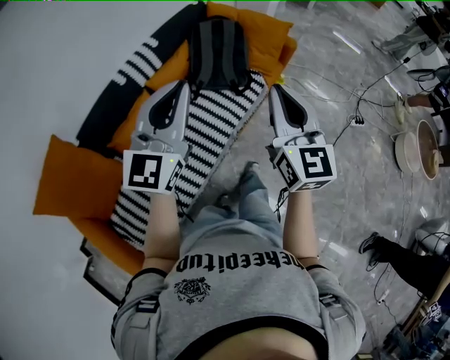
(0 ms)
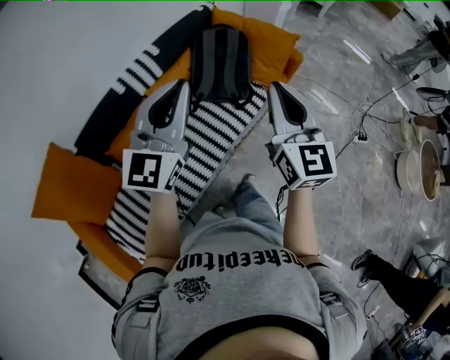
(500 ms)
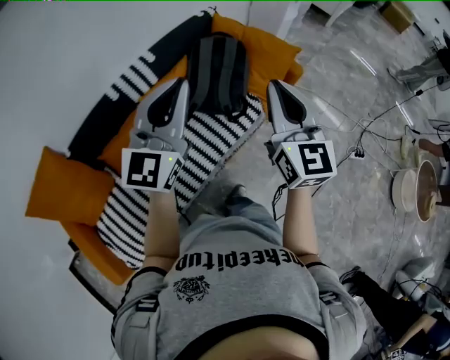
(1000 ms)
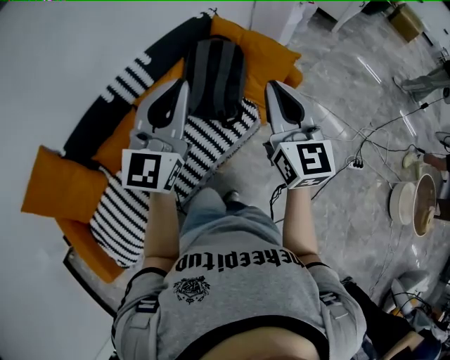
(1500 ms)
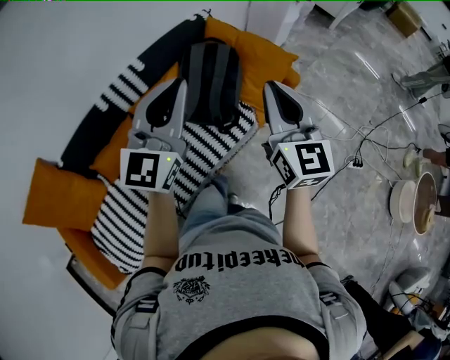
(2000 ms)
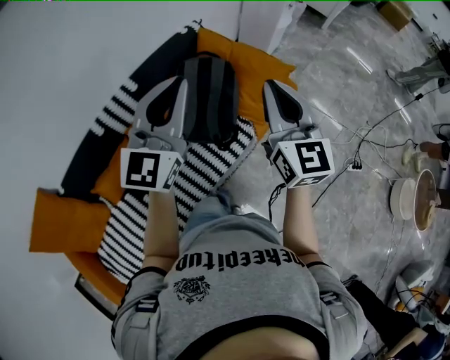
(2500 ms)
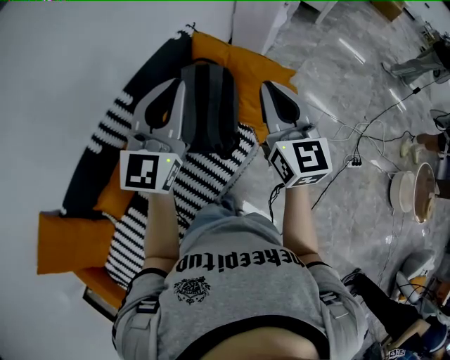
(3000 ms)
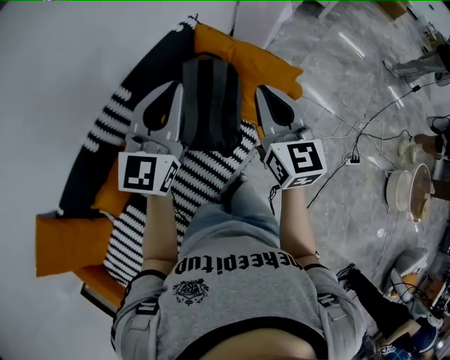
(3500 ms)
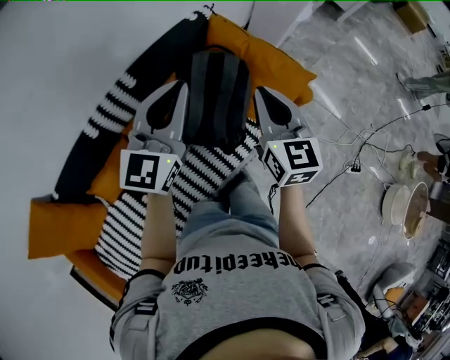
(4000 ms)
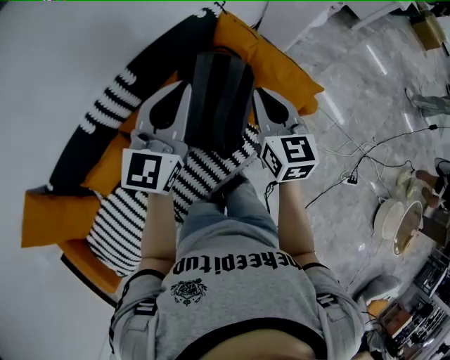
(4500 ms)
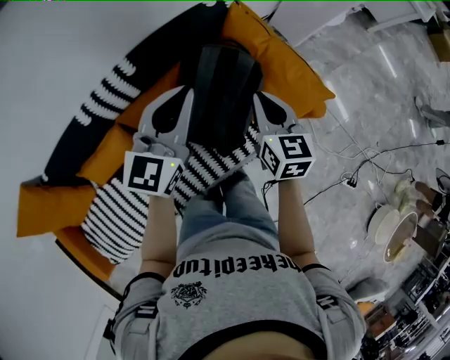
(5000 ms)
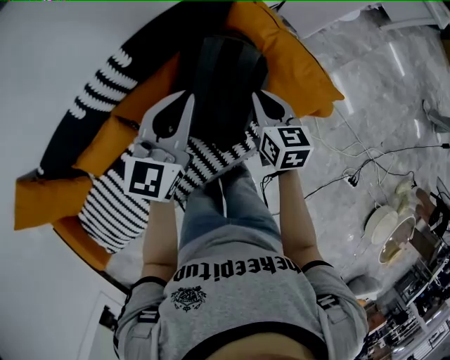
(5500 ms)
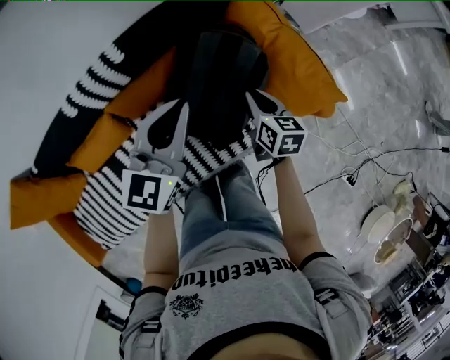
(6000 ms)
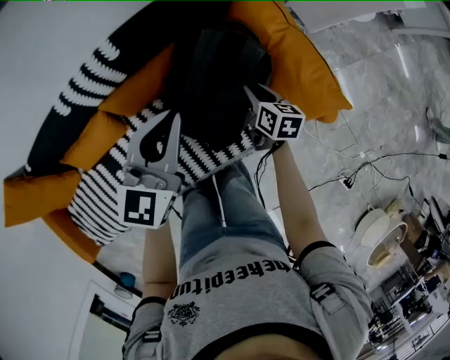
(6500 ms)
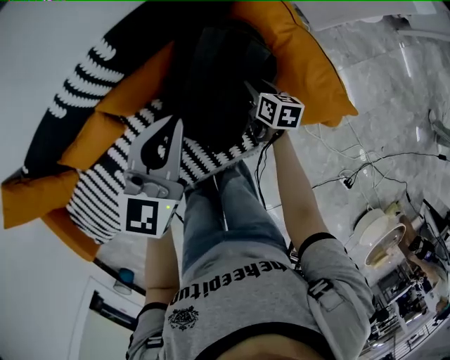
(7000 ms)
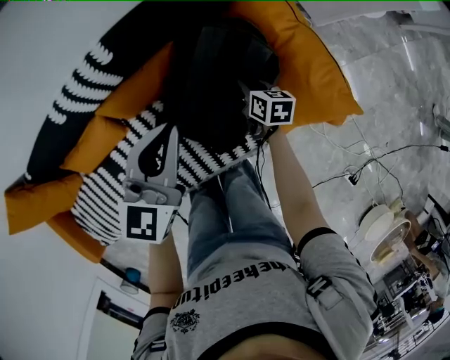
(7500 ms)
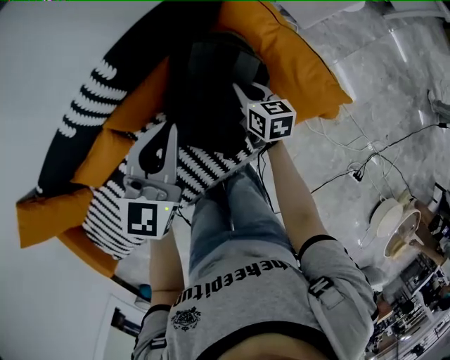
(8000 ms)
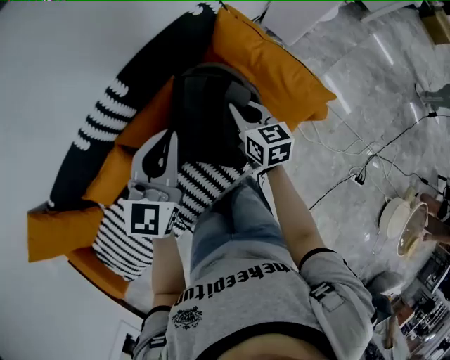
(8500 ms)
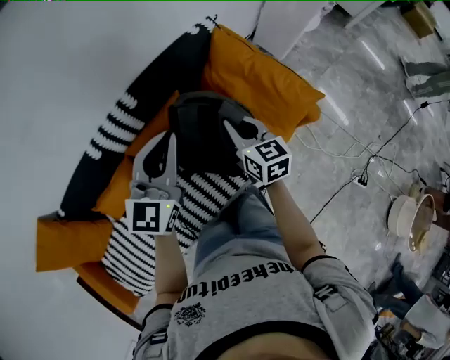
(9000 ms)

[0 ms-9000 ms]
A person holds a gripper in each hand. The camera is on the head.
0 ms to 2000 ms: Both grippers travel together forward and to the right, about 25 cm.
2000 ms to 4500 ms: The right gripper shifts some 30 cm forward and downward, and changes its angle by approximately 20 degrees. Meanwhile the left gripper moves forward, approximately 25 cm.
4500 ms to 7000 ms: The right gripper goes approximately 35 cm downward, swivels some 40 degrees, and opens up. Meanwhile the left gripper is displaced downward by roughly 15 cm, and swivels roughly 20 degrees.
7000 ms to 9000 ms: The right gripper travels upward, backward and to the left by about 25 cm, rotates some 30 degrees, and closes. The left gripper heads upward, covering roughly 10 cm.

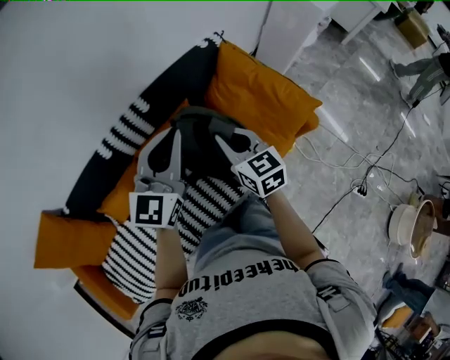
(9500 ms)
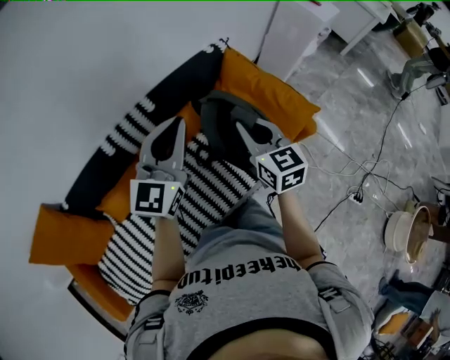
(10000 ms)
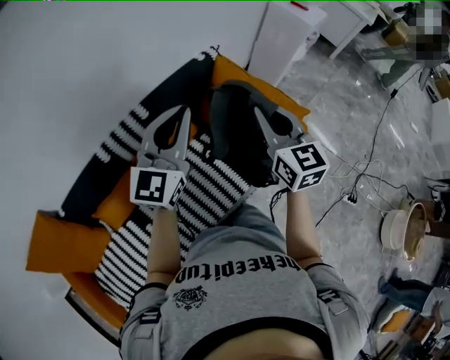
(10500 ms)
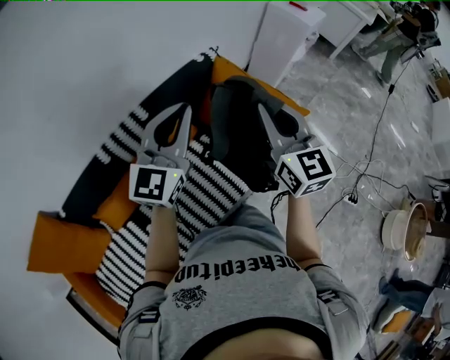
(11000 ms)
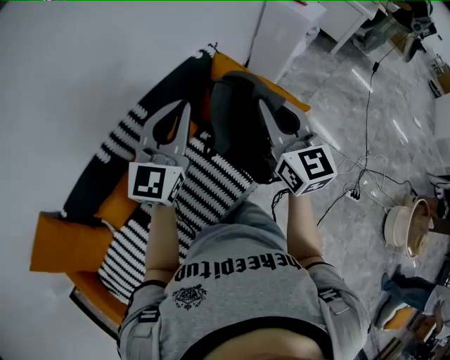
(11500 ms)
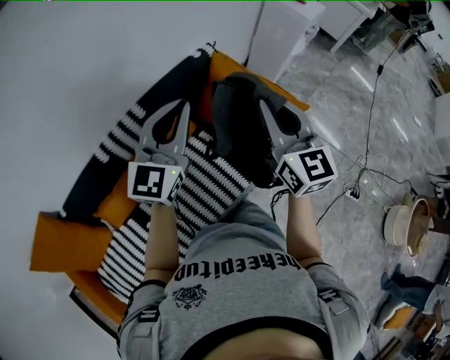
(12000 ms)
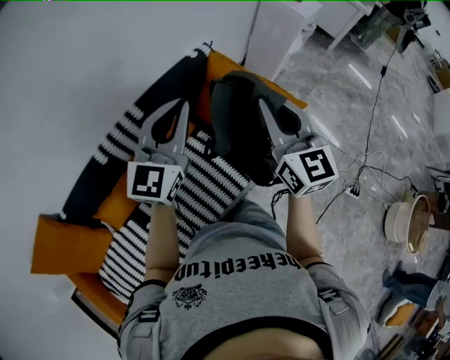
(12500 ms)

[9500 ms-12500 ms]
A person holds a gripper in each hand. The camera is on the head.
9500 ms to 11000 ms: The right gripper travels upward and to the right by about 20 cm, and changes its angle by some 30 degrees. The left gripper heads upward, covering some 5 cm.
11000 ms to 12500 ms: The grippers move only a little.

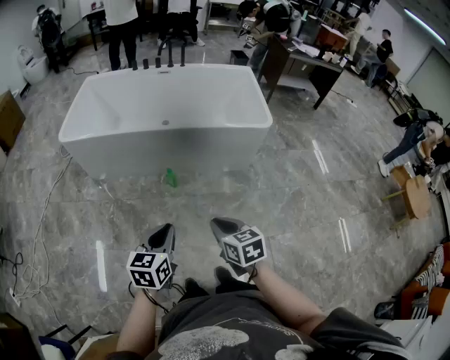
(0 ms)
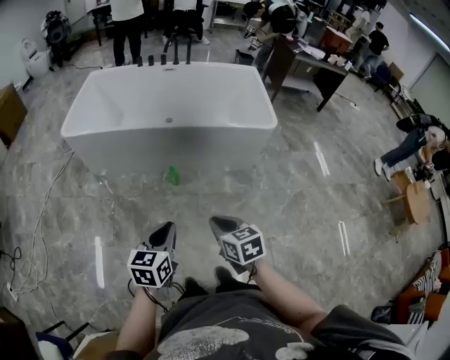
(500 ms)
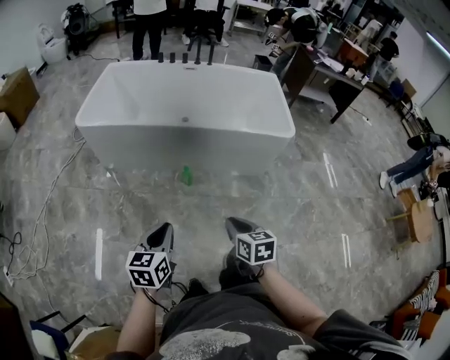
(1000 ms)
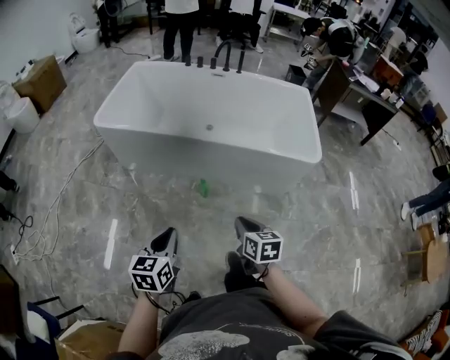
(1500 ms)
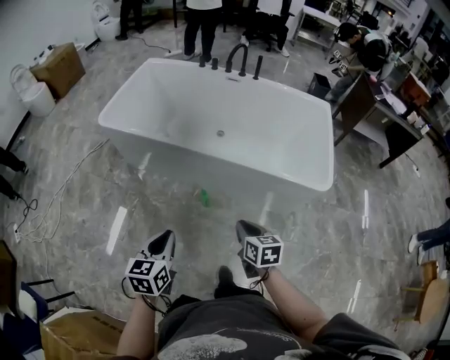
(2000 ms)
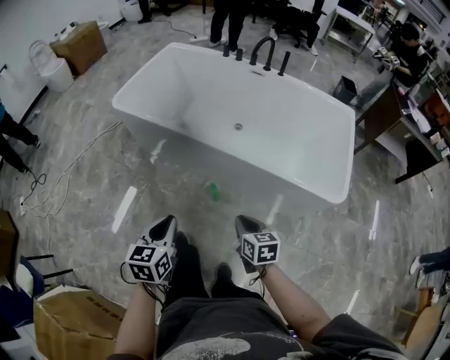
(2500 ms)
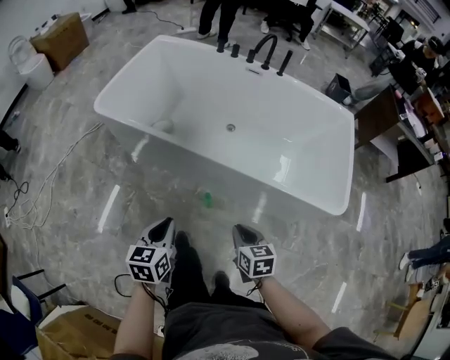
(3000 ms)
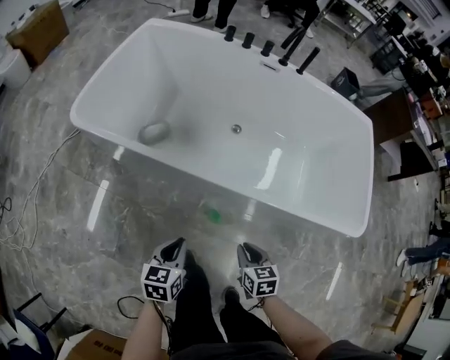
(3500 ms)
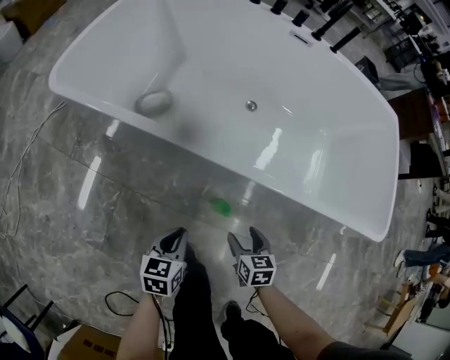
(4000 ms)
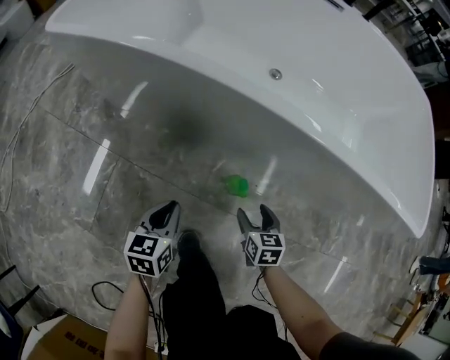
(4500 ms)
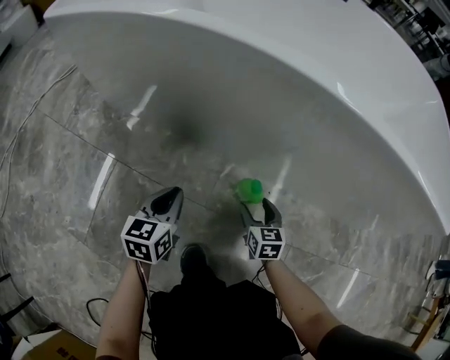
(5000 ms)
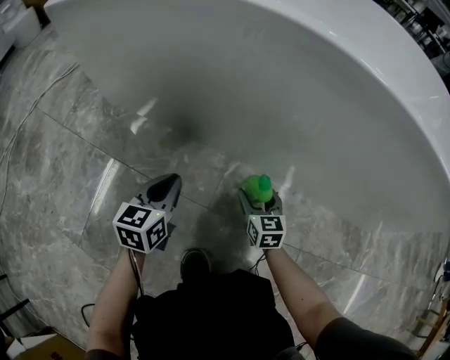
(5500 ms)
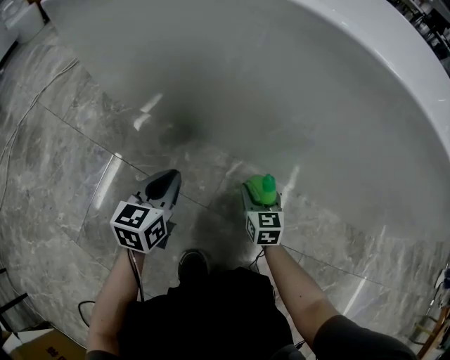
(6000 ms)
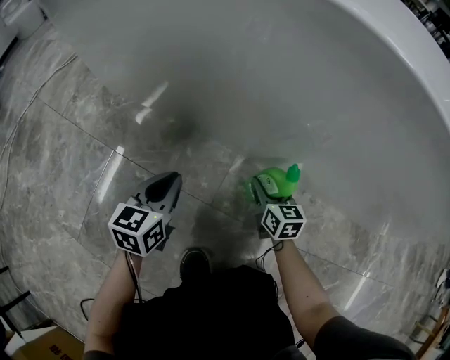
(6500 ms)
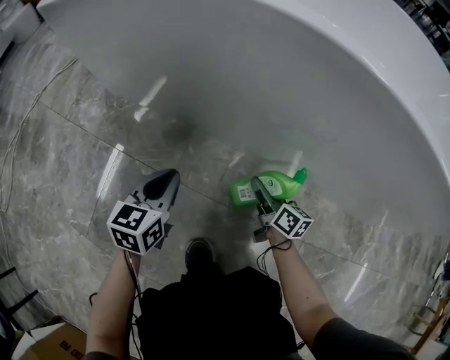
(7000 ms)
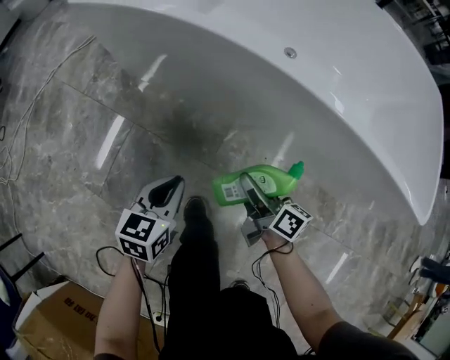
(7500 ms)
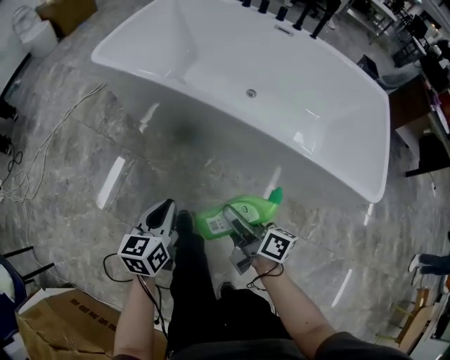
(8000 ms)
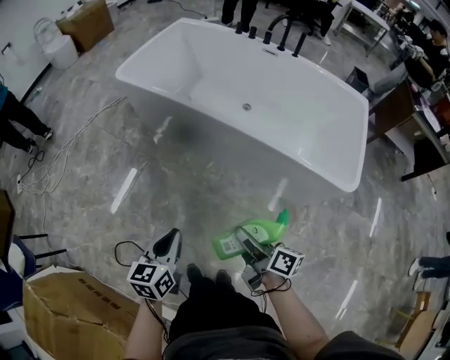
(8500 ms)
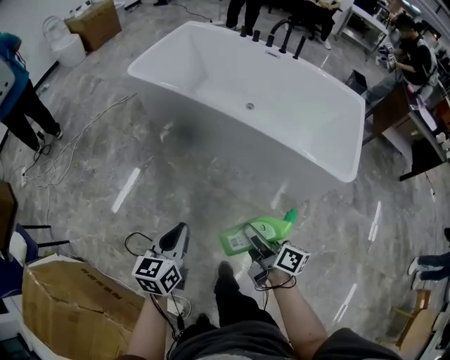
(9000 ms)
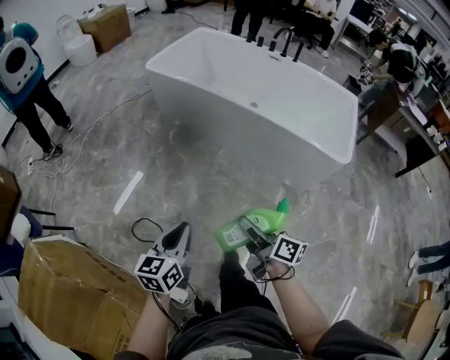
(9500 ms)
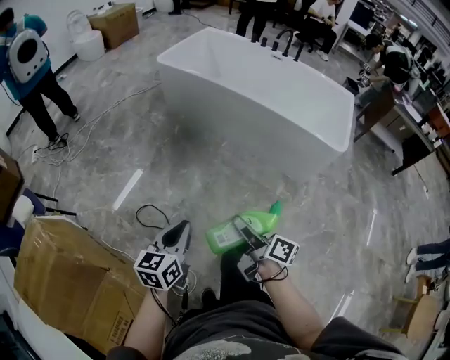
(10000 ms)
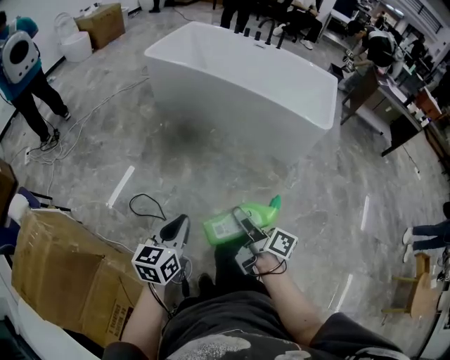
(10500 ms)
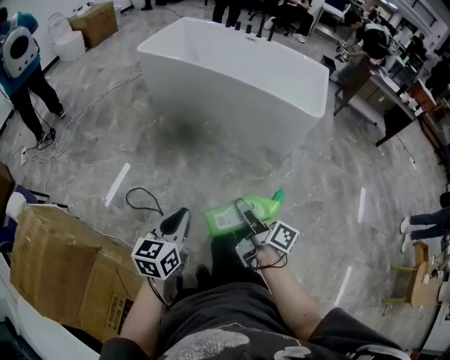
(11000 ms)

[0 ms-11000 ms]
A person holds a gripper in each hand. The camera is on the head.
0 ms to 2000 ms: The two grippers go approximately 25 cm forward. The left gripper changes its angle by roughly 20 degrees.
2000 ms to 3500 ms: The left gripper shifts roughly 35 cm forward and downward, while the right gripper moves forward, downward and to the left, about 30 cm.
3500 ms to 5500 ms: The grippers both shift downward by about 40 cm. The right gripper swivels roughly 20 degrees, and opens its fingers.
5500 ms to 7500 ms: The right gripper shifts some 25 cm upward, rotates around the line of its fingers by approximately 50 degrees, clockwise from behind, and closes; the left gripper moves upward and backward, about 20 cm.
7500 ms to 9000 ms: The grippers both shift upward and backward by some 50 cm.
9000 ms to 11000 ms: The two grippers go about 35 cm backward.

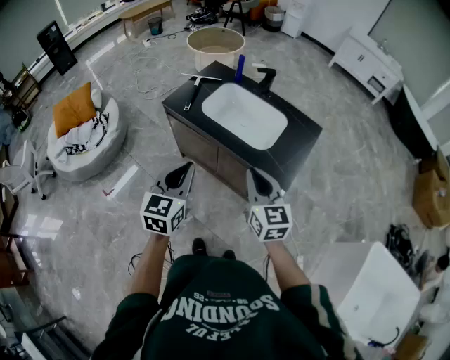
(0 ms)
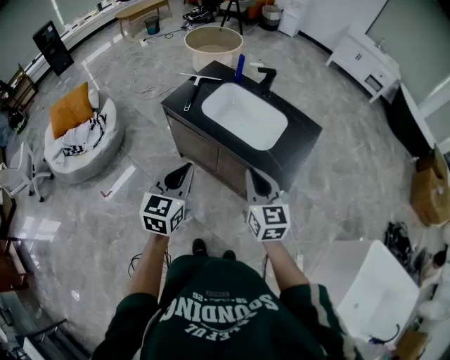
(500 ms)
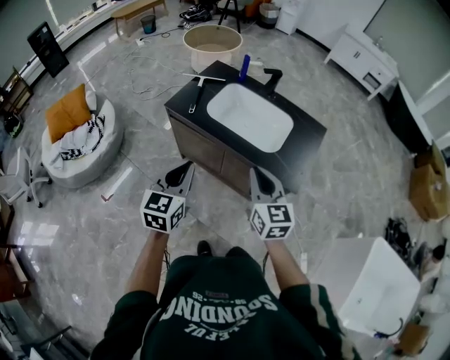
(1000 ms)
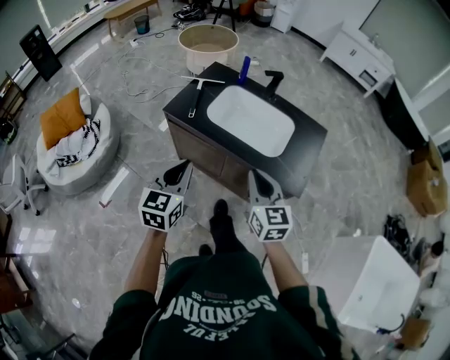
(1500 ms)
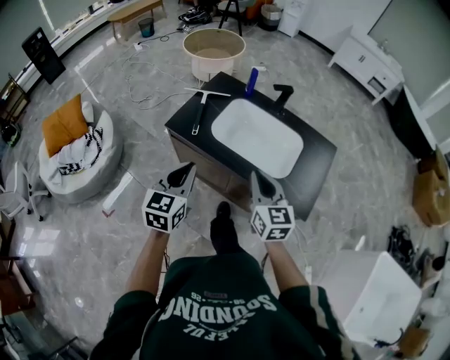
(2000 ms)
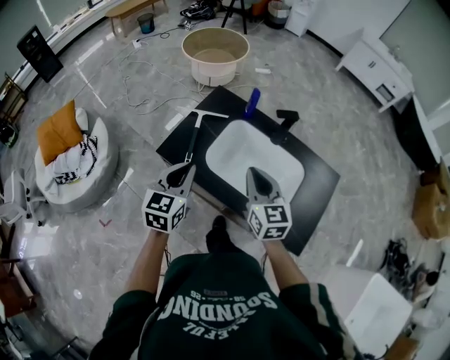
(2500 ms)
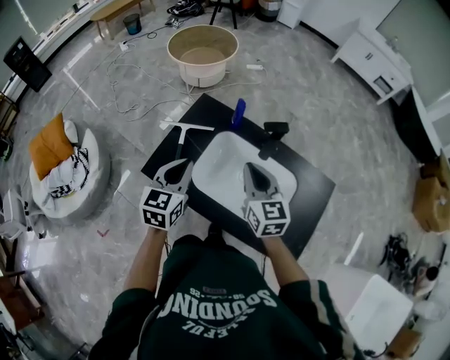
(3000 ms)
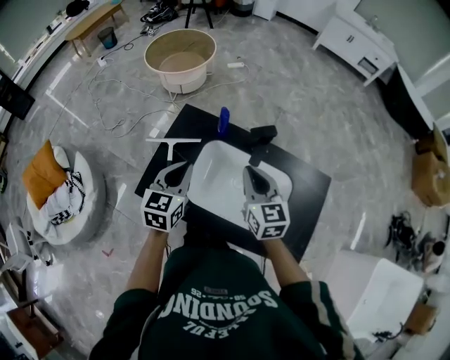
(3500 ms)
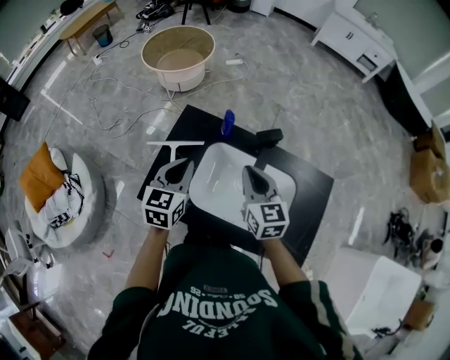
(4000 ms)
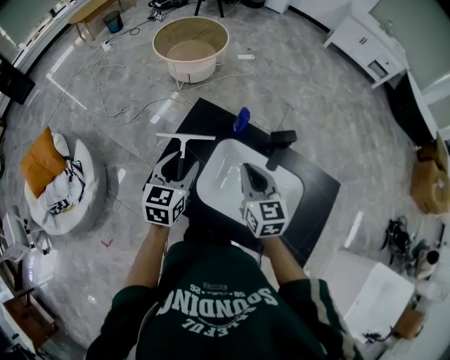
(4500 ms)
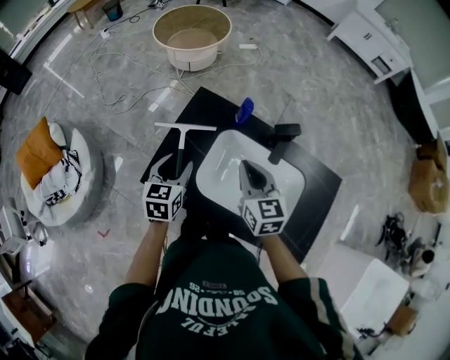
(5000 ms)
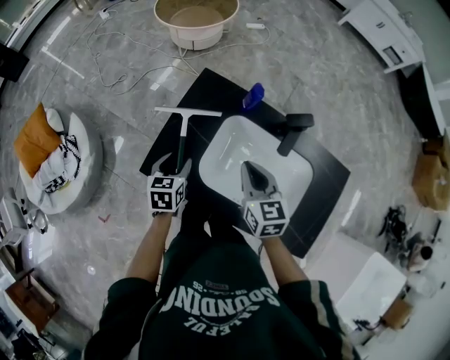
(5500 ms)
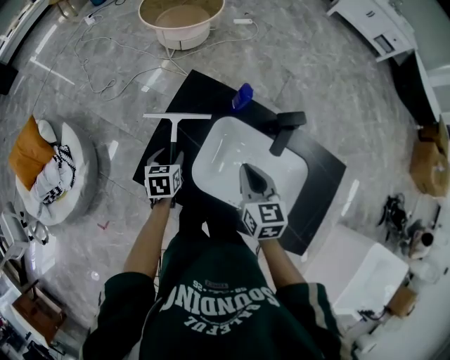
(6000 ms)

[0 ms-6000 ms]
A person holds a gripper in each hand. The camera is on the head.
0 ms to 2000 ms: Both grippers travel together forward and to the left, some 20 cm.
2000 ms to 4000 ms: The grippers both shift forward by about 35 cm.
4000 ms to 6000 ms: The right gripper shifts approximately 10 cm downward. Meanwhile the left gripper goes some 25 cm downward and to the left, changes its angle by about 30 degrees, and opens its fingers.
